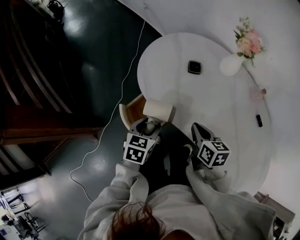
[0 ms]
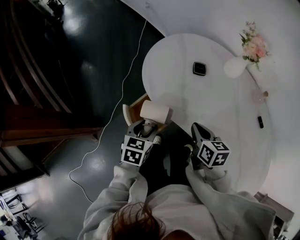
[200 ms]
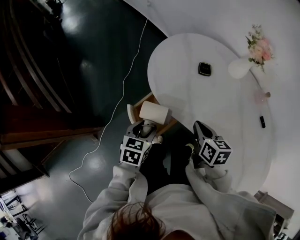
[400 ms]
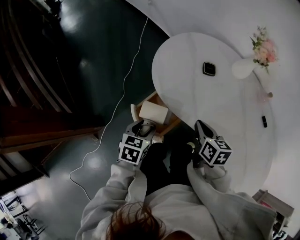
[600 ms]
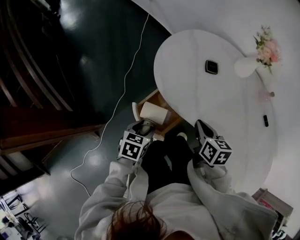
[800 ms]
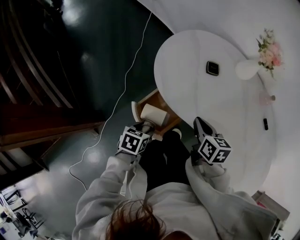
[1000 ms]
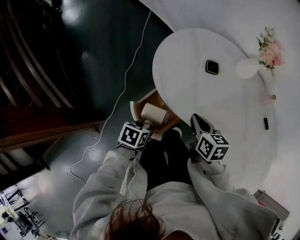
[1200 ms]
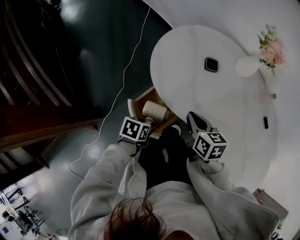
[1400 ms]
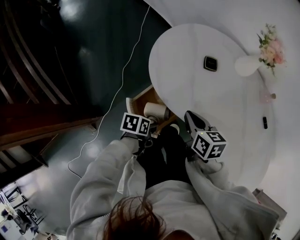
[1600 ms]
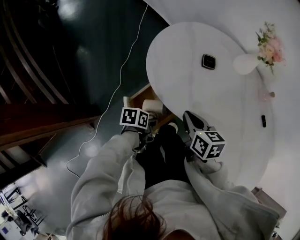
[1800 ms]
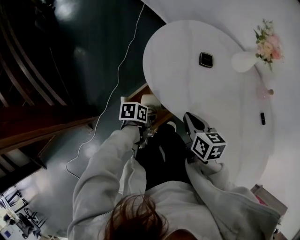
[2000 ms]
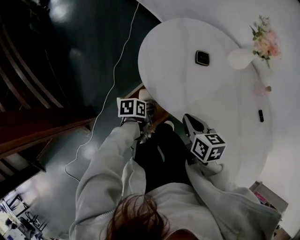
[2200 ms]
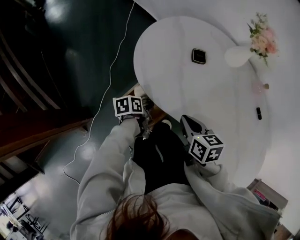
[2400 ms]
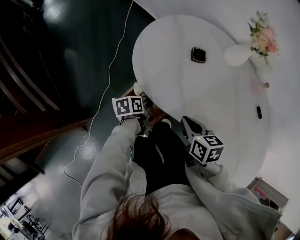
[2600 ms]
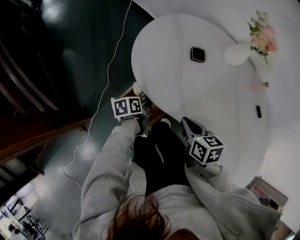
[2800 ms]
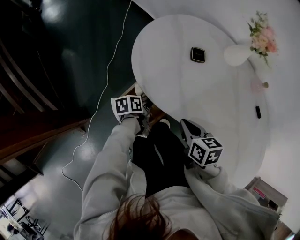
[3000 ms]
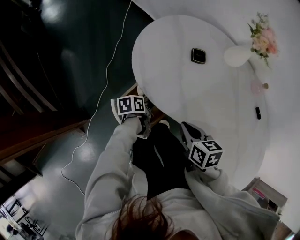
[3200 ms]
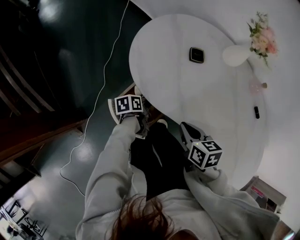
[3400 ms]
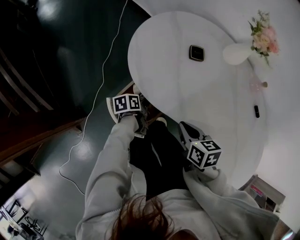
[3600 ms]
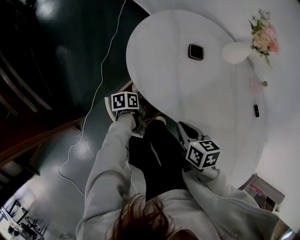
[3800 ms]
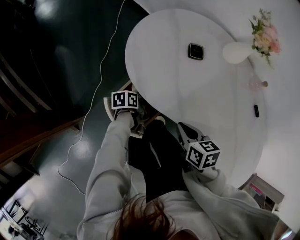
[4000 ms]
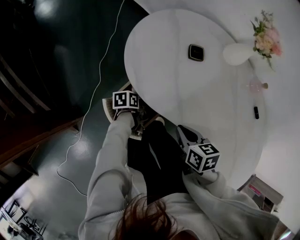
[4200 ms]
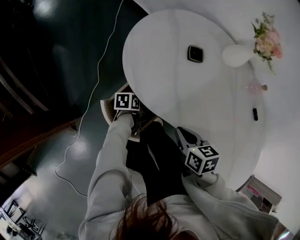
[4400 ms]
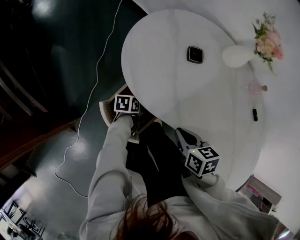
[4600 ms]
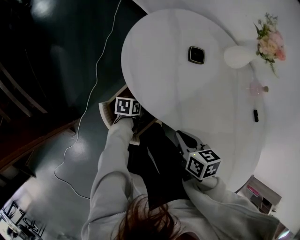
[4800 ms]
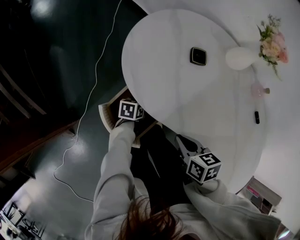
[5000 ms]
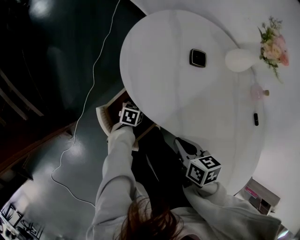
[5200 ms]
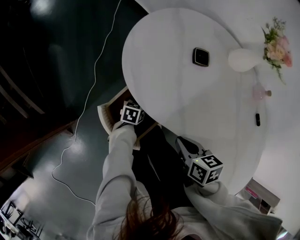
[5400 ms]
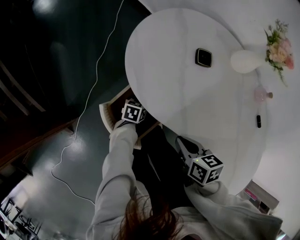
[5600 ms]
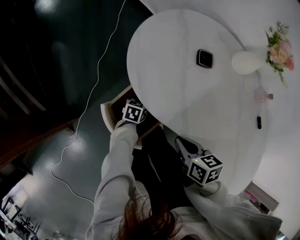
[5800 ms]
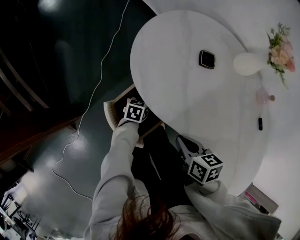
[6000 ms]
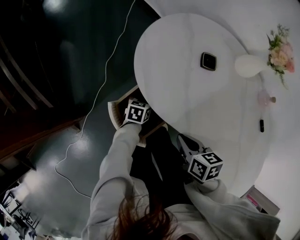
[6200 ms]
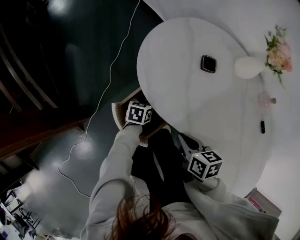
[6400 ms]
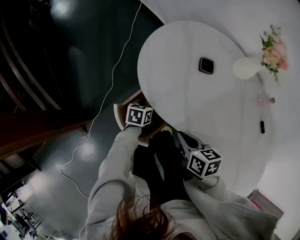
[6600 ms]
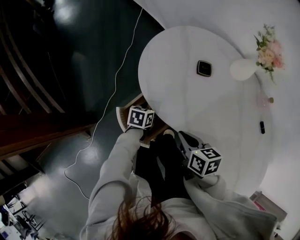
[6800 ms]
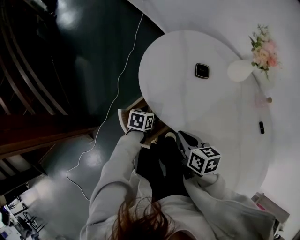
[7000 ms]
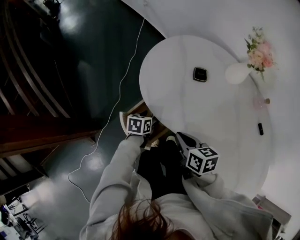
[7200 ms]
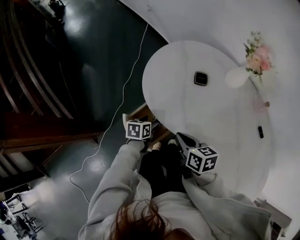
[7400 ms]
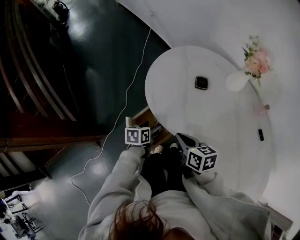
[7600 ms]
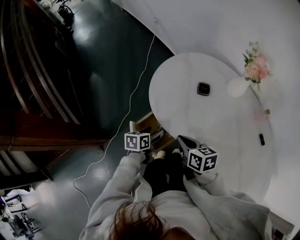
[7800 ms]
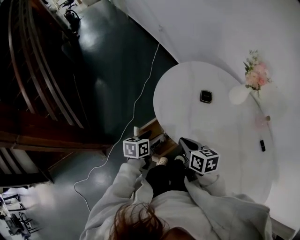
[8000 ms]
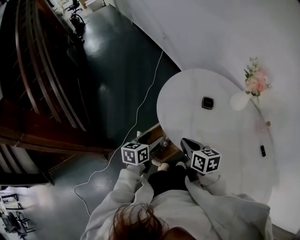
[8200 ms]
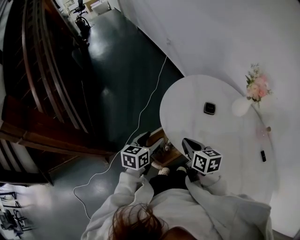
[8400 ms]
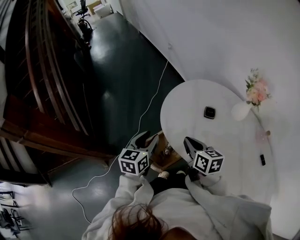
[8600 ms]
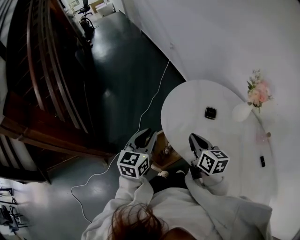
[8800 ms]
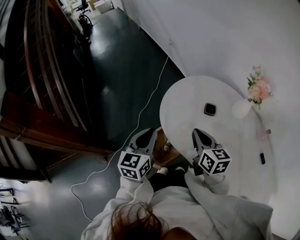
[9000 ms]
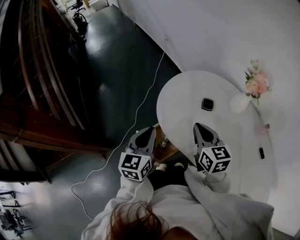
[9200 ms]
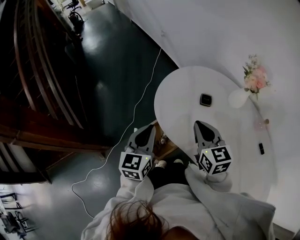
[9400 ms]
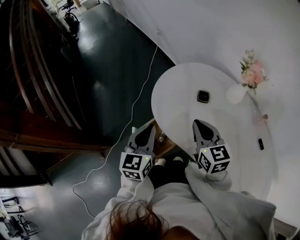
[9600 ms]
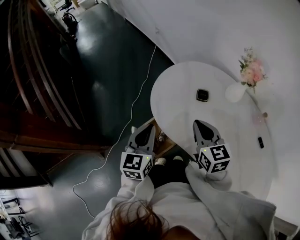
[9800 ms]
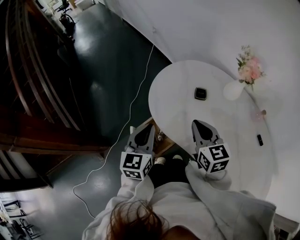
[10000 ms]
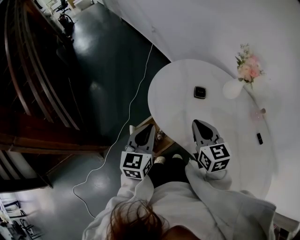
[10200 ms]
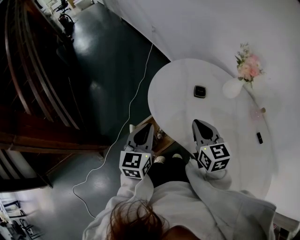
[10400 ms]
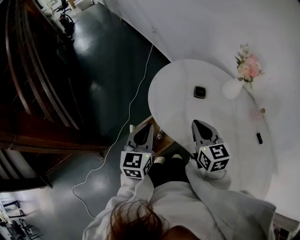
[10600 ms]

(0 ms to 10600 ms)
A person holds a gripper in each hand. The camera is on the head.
0 ms - 1600 ms: The left gripper moves downward, roughly 15 cm, and rotates about 40 degrees, while the right gripper heads to the left, covering about 10 cm.
1600 ms - 3000 ms: The right gripper ends up some 5 cm from where it was. The left gripper heads forward, covering some 10 cm, and rotates some 20 degrees.
3000 ms - 4600 ms: The left gripper is displaced downward by about 10 cm.
4600 ms - 6000 ms: The left gripper rotates roughly 20 degrees.
6000 ms - 7600 ms: The left gripper is displaced upward and backward by some 15 cm. Meanwhile the right gripper is displaced upward by about 5 cm.
7600 ms - 9000 ms: The left gripper is displaced upward by some 25 cm, rotates roughly 40 degrees, and closes, while the right gripper travels upward and forward by about 15 cm, and swivels about 20 degrees.
9000 ms - 10600 ms: There are only small adjustments of the grippers.

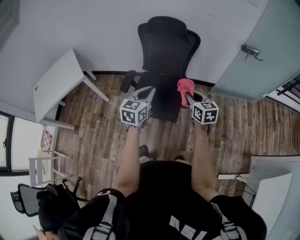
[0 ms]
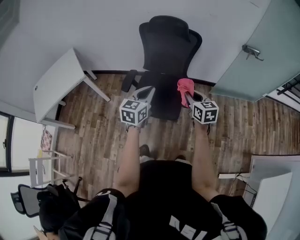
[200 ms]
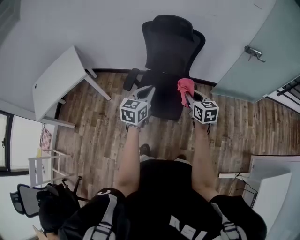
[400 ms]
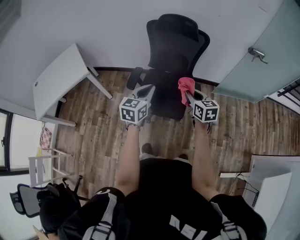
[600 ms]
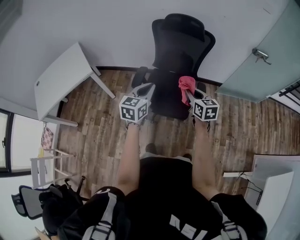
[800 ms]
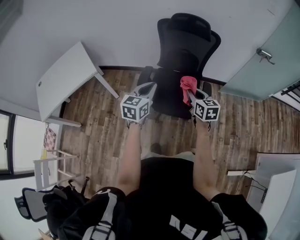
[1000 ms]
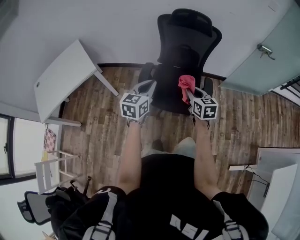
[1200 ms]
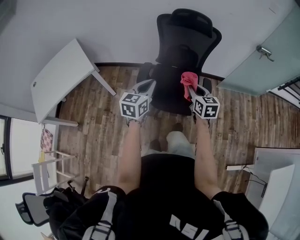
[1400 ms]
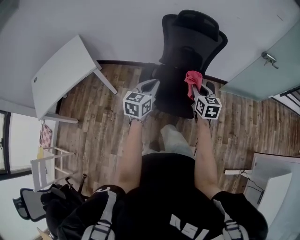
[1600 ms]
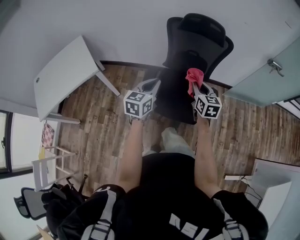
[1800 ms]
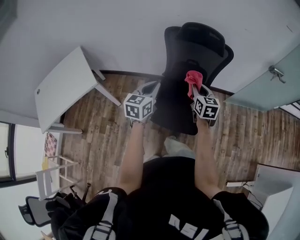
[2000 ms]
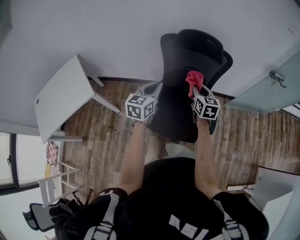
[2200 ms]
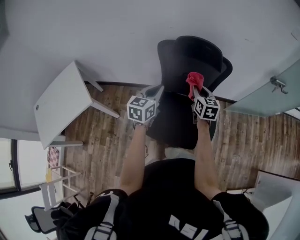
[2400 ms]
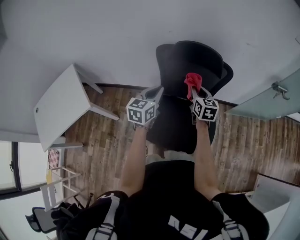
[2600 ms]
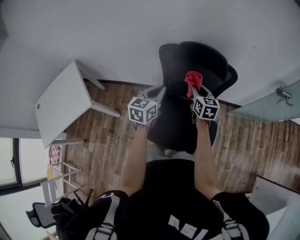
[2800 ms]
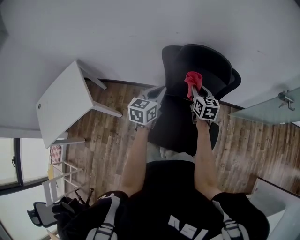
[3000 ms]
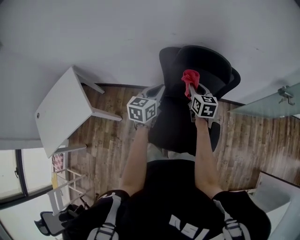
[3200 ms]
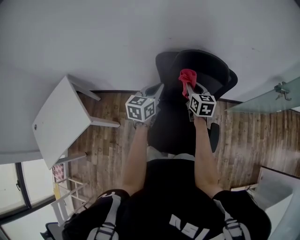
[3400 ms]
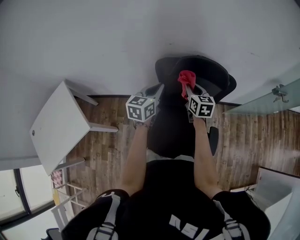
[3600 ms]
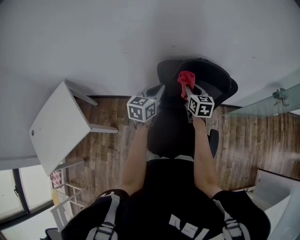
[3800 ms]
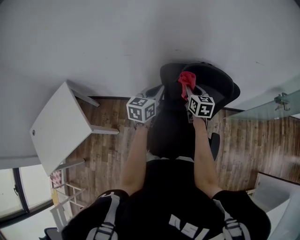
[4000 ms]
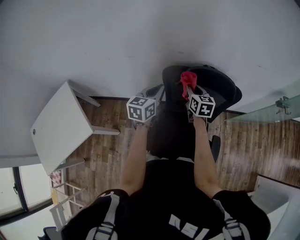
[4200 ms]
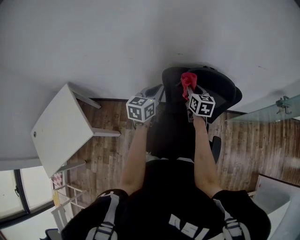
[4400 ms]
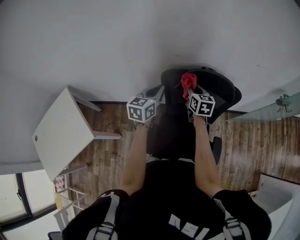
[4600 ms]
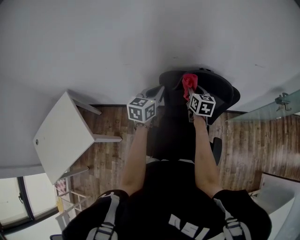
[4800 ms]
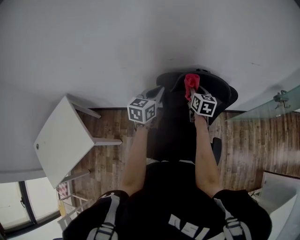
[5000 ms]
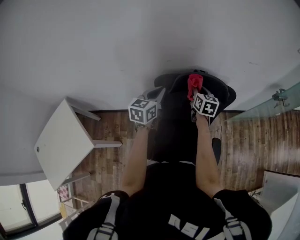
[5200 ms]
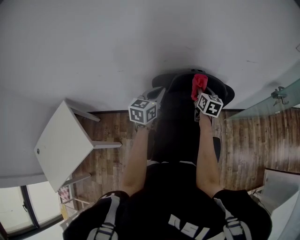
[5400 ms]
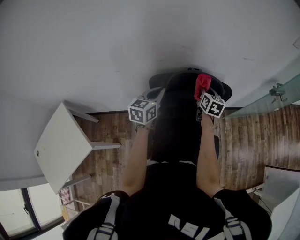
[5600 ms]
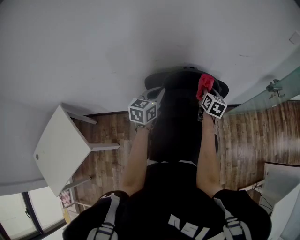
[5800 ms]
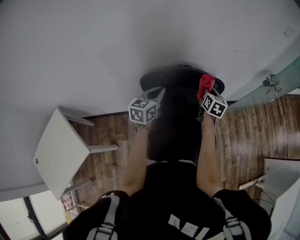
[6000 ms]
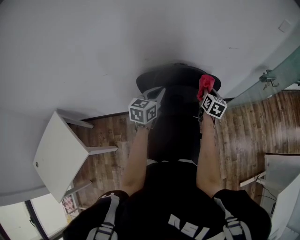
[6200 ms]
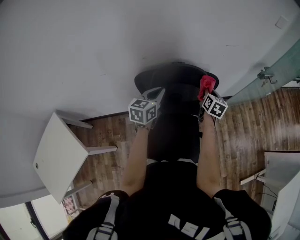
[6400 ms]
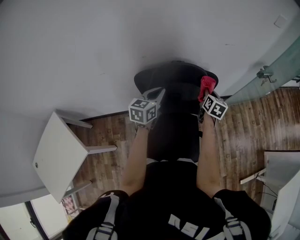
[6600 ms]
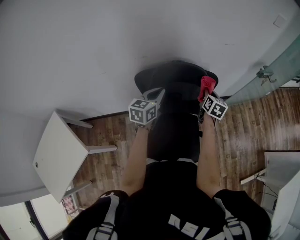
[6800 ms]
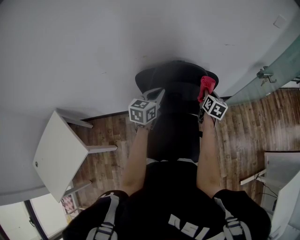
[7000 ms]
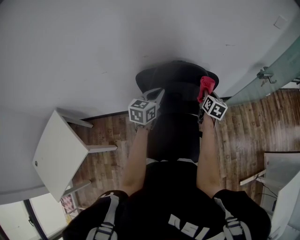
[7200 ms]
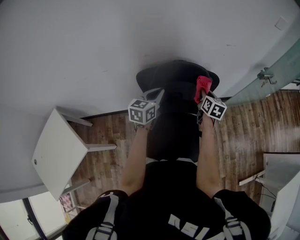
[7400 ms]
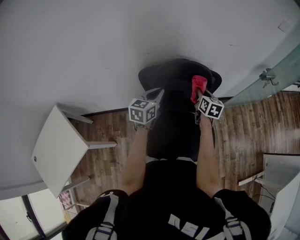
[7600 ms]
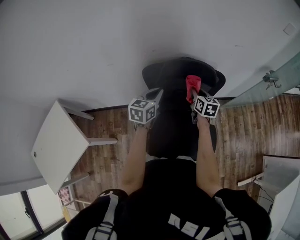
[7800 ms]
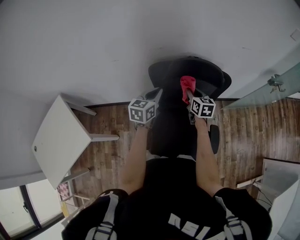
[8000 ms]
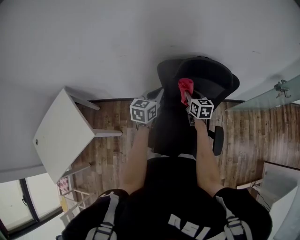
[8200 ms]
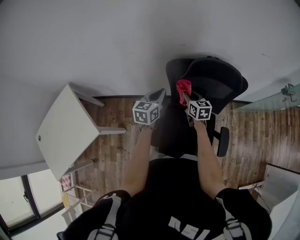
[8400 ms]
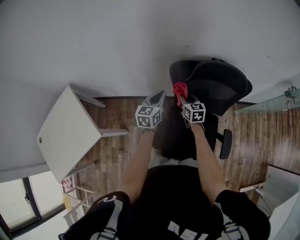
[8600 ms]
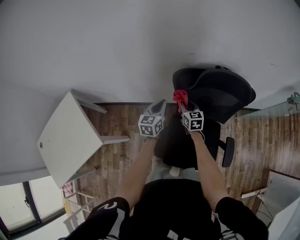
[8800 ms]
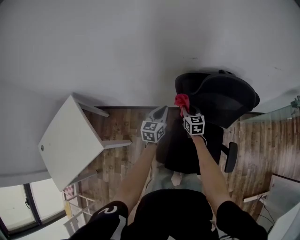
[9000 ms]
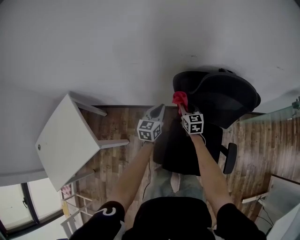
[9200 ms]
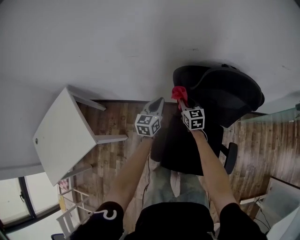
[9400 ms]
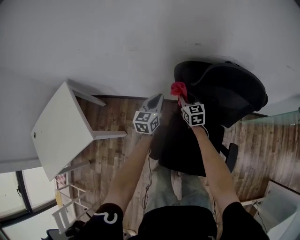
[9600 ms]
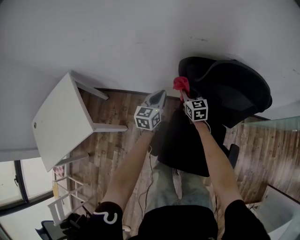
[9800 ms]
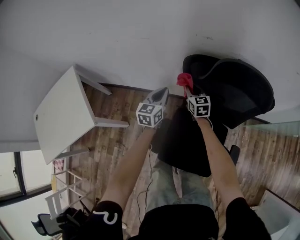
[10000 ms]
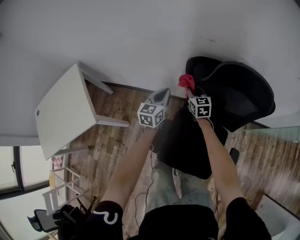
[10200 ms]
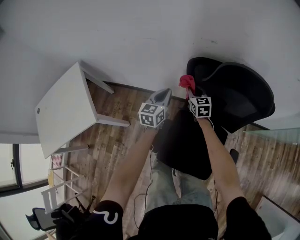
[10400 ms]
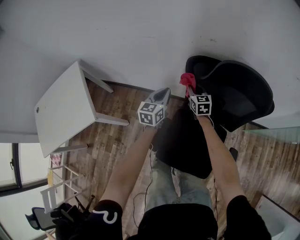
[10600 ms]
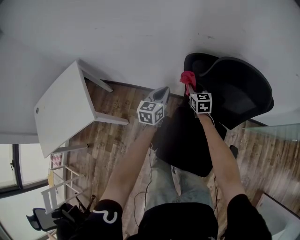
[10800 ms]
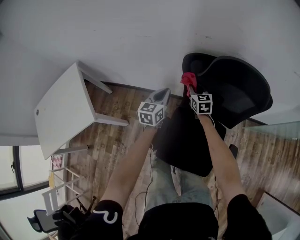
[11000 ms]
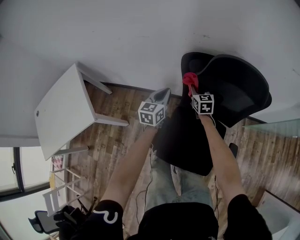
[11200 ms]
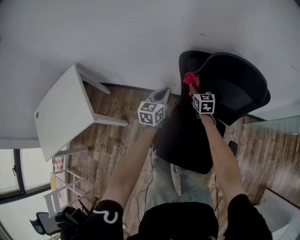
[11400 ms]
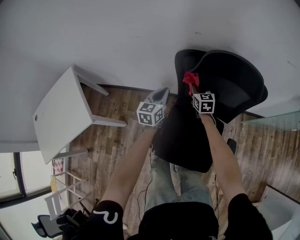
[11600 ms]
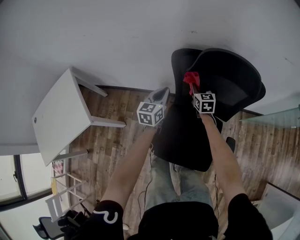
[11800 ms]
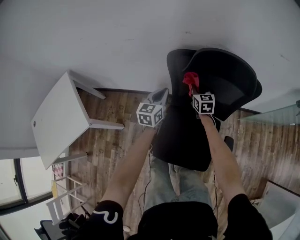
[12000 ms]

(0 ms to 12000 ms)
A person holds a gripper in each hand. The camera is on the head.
0 ms - 1600 ms: The two grippers go some 20 cm to the left.
1600 ms - 3000 ms: Both grippers travel together forward, some 35 cm.
3000 ms - 4400 ms: Both grippers travel together forward and to the left, some 15 cm.
4400 ms - 6000 ms: The left gripper shifts approximately 10 cm to the right. The right gripper moves to the right, roughly 20 cm, and changes its angle by about 30 degrees.
6000 ms - 7600 ms: The right gripper is displaced backward by approximately 5 cm.
7600 ms - 9000 ms: Both grippers travel together to the left and downward, approximately 25 cm. The right gripper rotates roughly 30 degrees.
9000 ms - 10400 ms: The right gripper shifts by some 5 cm.
10400 ms - 12000 ms: The right gripper shifts about 10 cm to the right. Meanwhile the left gripper is displaced to the right by roughly 5 cm.

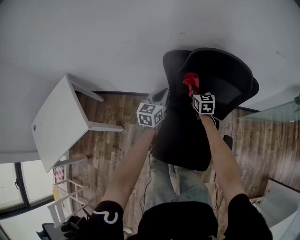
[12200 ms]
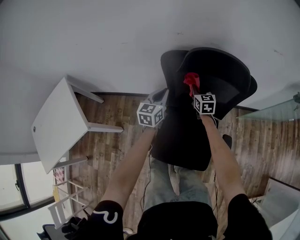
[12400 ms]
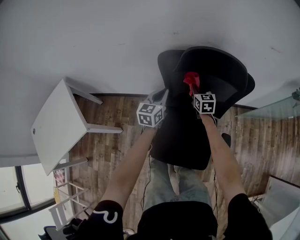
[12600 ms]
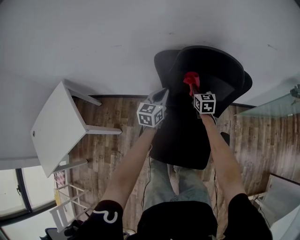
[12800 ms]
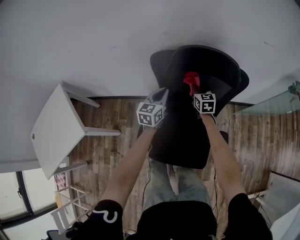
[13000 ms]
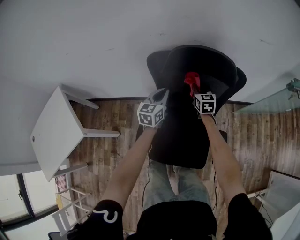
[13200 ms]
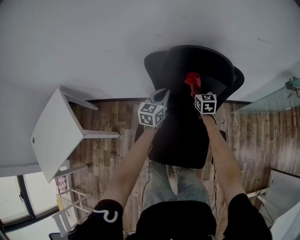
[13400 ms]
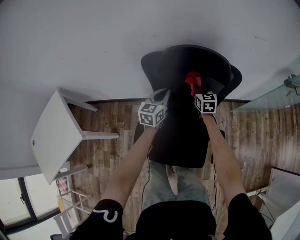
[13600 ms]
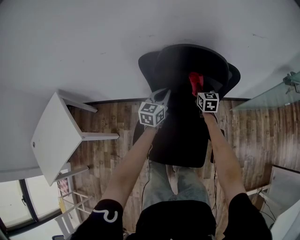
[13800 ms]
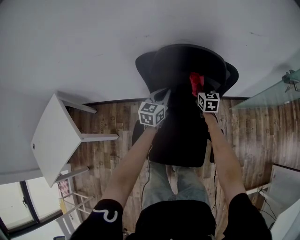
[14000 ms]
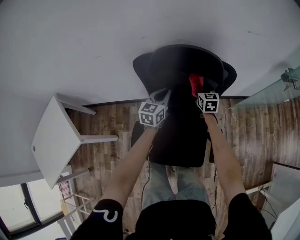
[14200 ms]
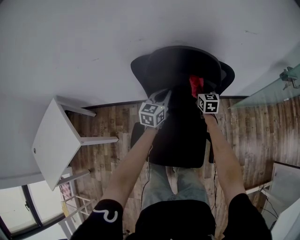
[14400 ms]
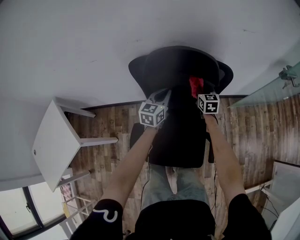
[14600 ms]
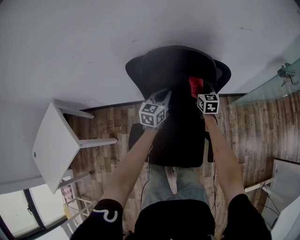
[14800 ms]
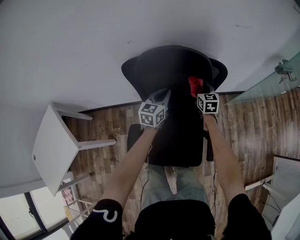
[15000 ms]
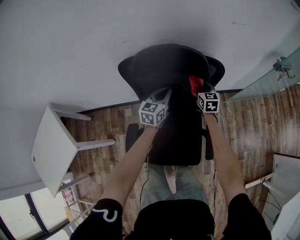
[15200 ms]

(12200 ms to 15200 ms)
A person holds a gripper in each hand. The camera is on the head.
12200 ms - 13800 ms: Both grippers travel together to the right, roughly 15 cm.
13800 ms - 15200 ms: Both grippers travel together to the right, about 10 cm.
